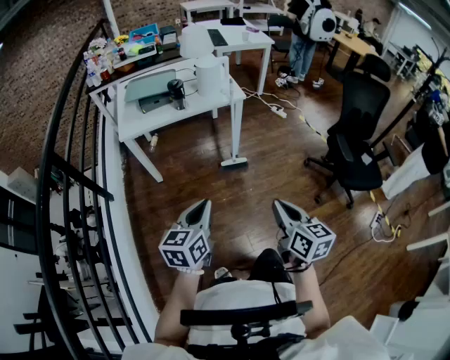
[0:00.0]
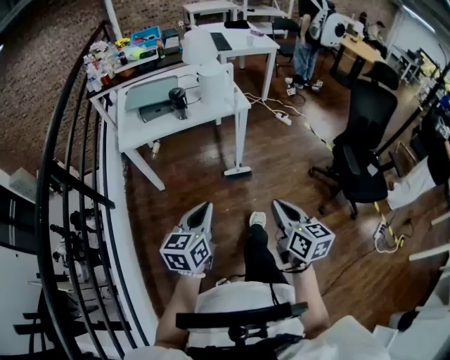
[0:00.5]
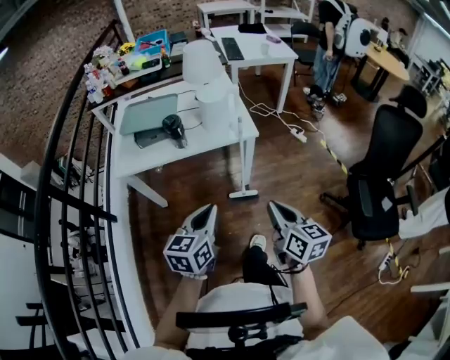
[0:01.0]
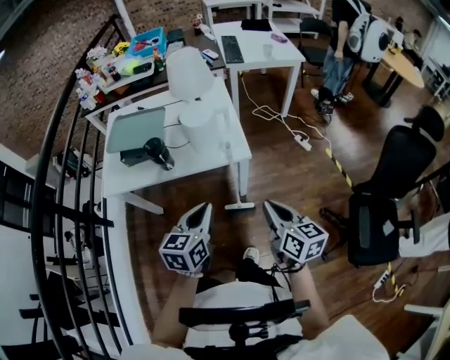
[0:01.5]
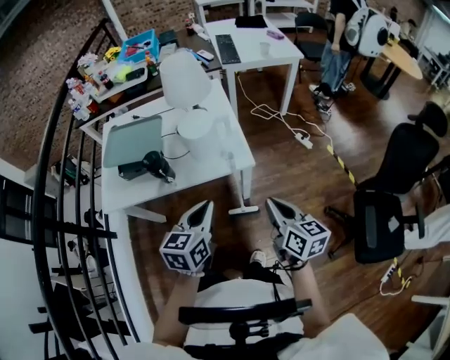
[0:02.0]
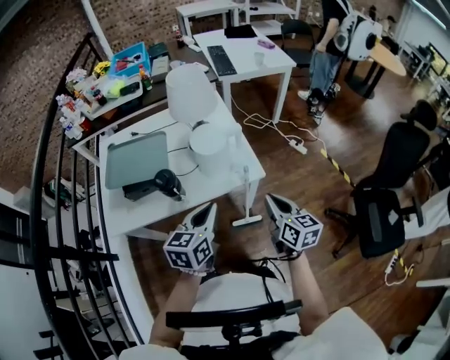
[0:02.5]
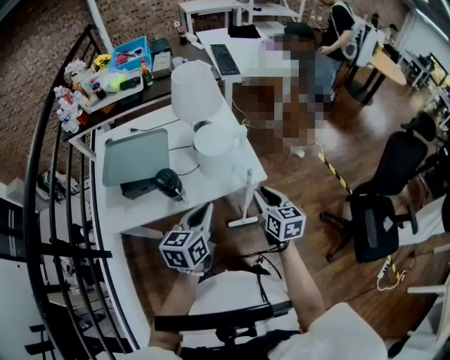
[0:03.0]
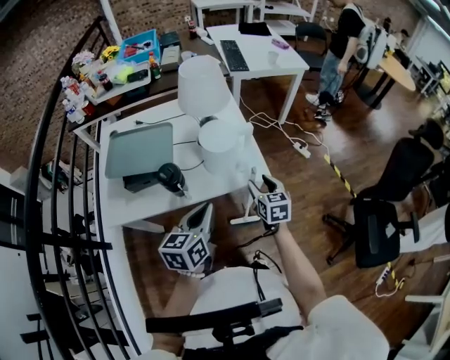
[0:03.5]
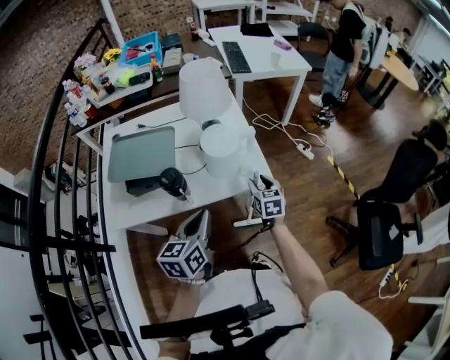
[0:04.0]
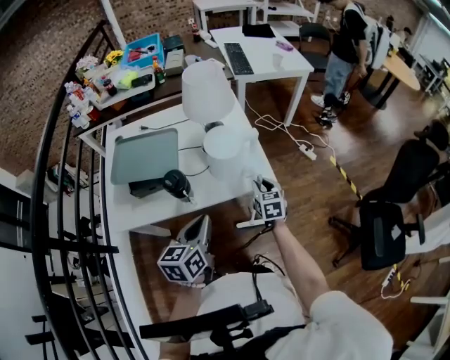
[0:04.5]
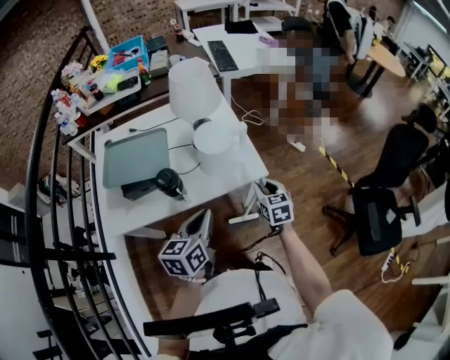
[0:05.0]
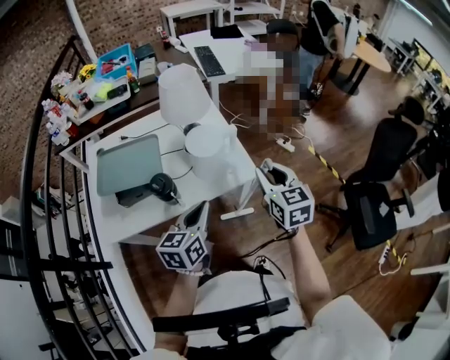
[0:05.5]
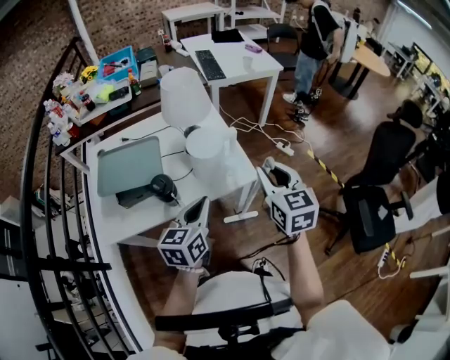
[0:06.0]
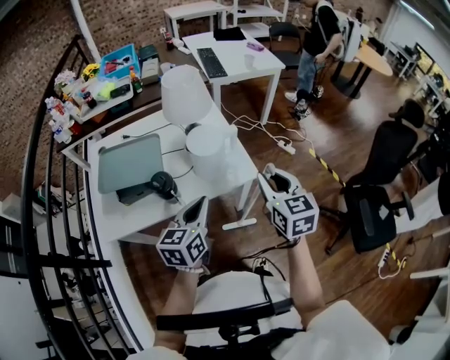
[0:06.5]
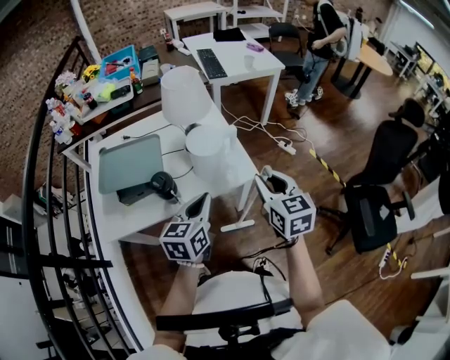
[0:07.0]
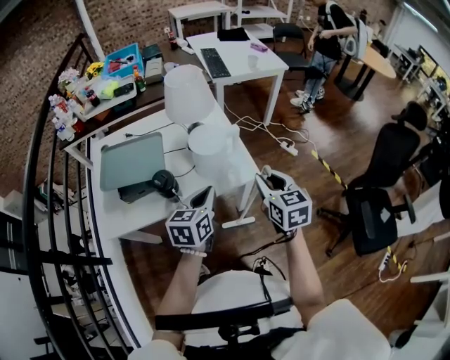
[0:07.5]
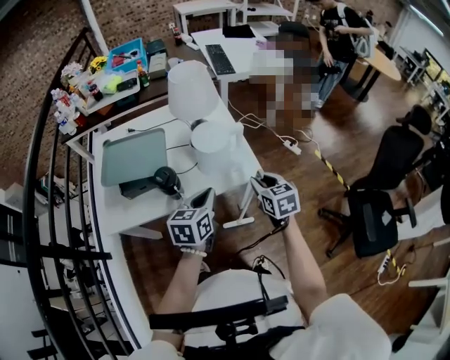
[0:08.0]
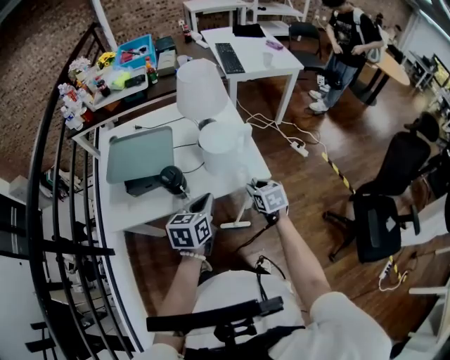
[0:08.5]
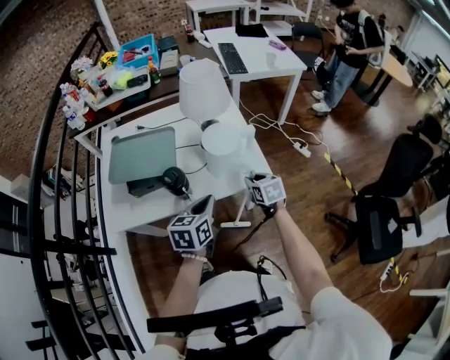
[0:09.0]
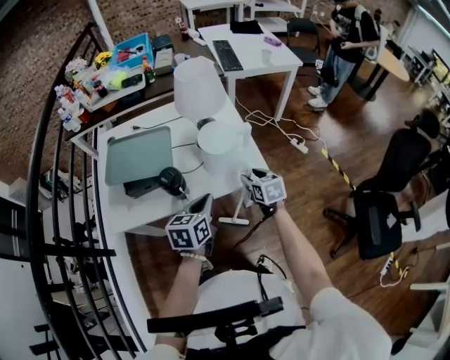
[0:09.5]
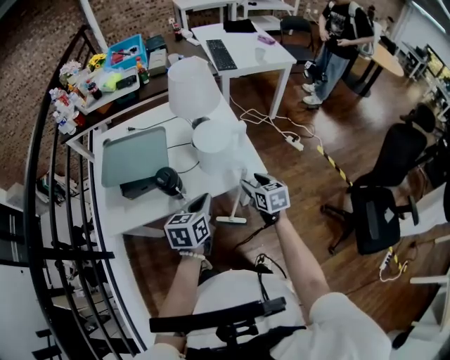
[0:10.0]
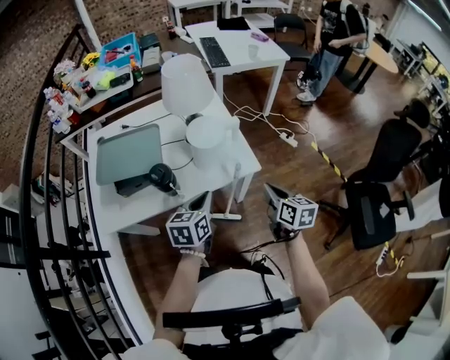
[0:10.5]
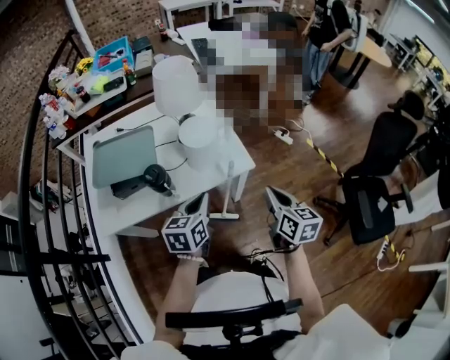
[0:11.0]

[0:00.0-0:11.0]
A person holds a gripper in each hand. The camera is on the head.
0:00.0 to 0:02.0: Both grippers are carried forward, some 50 cm.
0:02.0 to 0:03.5: The right gripper is displaced forward, downward and to the left by about 20 cm, rotates roughly 30 degrees, and opens its fingers; the left gripper is displaced to the left and forward by roughly 10 cm.
0:03.5 to 0:05.5: The right gripper heads upward, covering about 15 cm, and closes.
0:05.5 to 0:07.5: The grippers move only a little.
0:07.5 to 0:09.0: The right gripper is displaced downward and forward by approximately 20 cm, and swivels approximately 20 degrees. The left gripper ends up some 5 cm from where it was.
0:09.0 to 0:11.0: The right gripper goes some 20 cm backward, upward and to the right, changes its angle by some 30 degrees, and closes up.

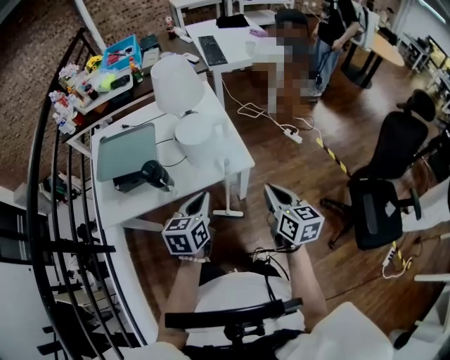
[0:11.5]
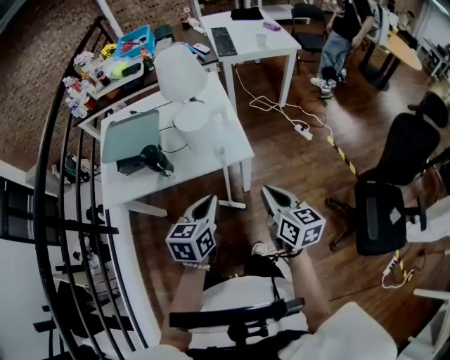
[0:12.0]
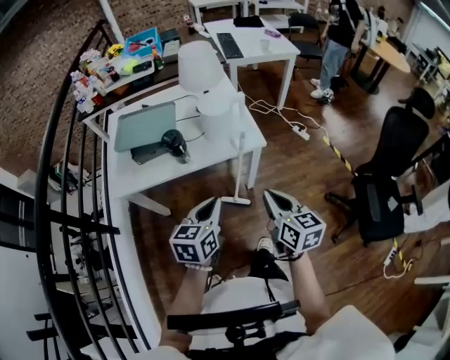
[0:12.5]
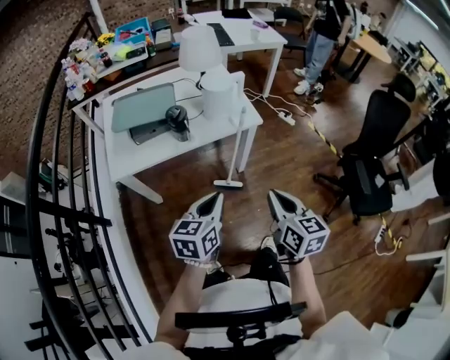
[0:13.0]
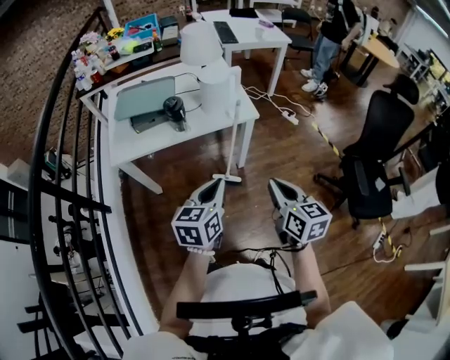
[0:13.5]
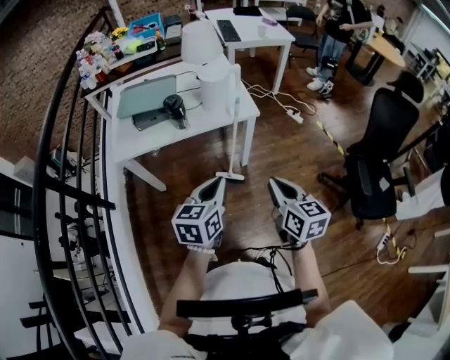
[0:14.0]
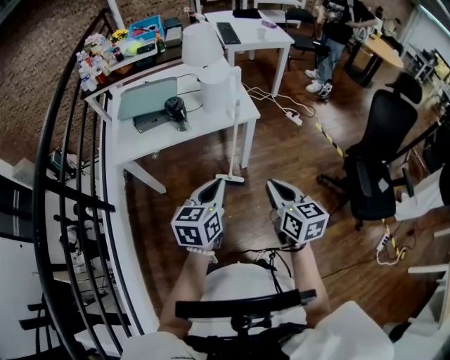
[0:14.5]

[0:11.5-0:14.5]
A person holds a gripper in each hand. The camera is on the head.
0:11.5 to 0:13.0: The left gripper heads backward, covering about 25 cm. The right gripper shifts roughly 25 cm backward and to the left.
0:13.0 to 0:14.5: The two grippers go some 5 cm to the right.

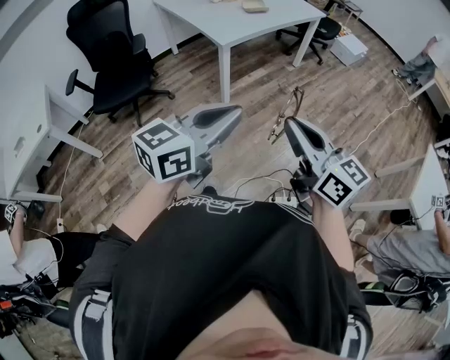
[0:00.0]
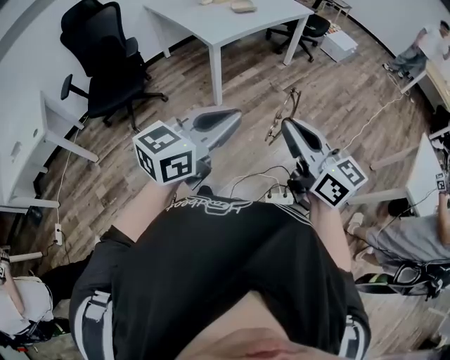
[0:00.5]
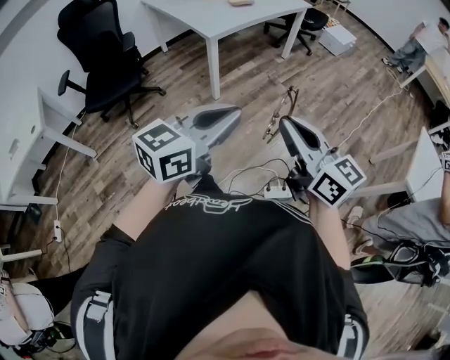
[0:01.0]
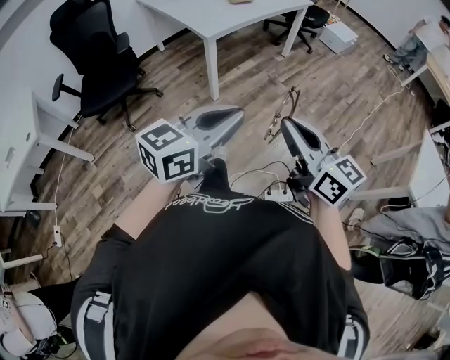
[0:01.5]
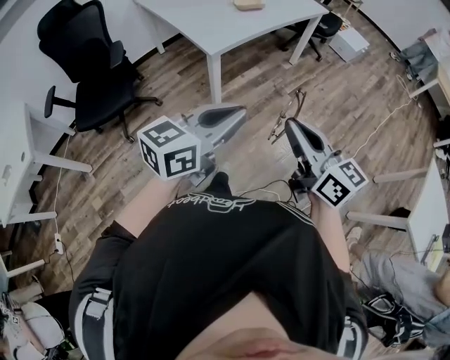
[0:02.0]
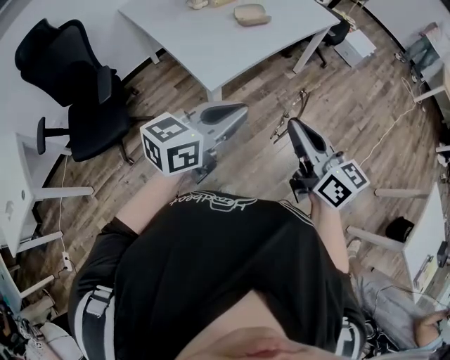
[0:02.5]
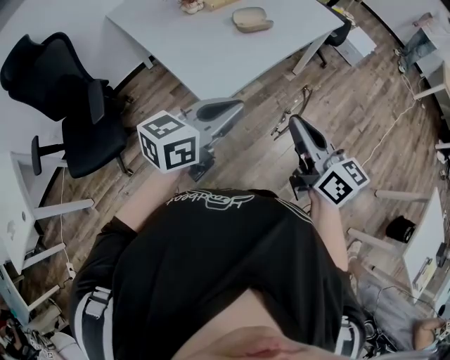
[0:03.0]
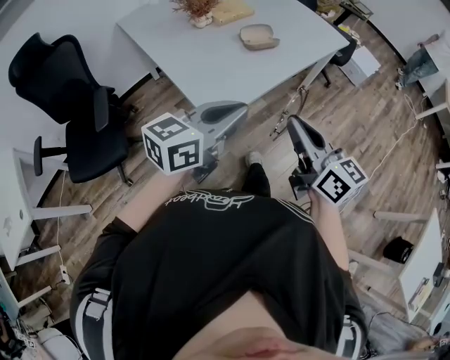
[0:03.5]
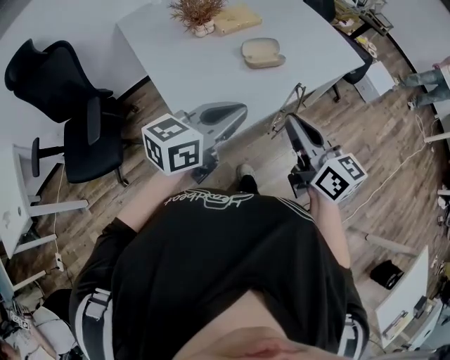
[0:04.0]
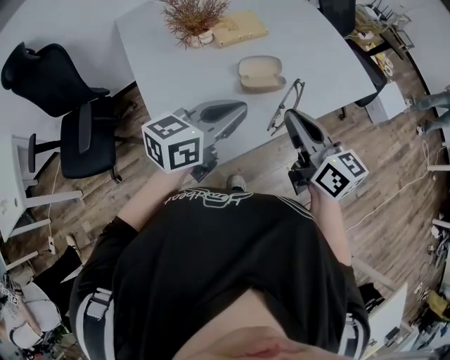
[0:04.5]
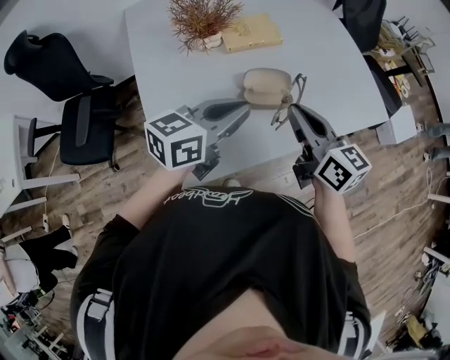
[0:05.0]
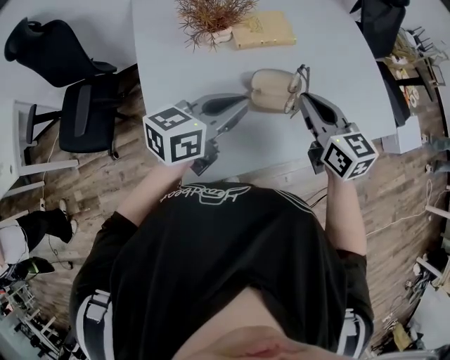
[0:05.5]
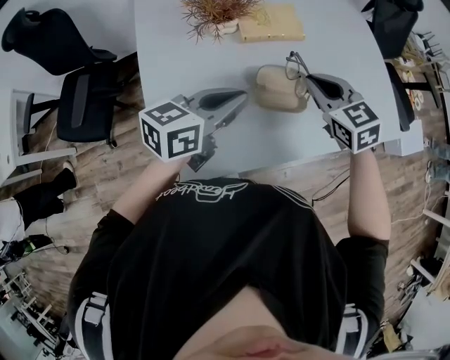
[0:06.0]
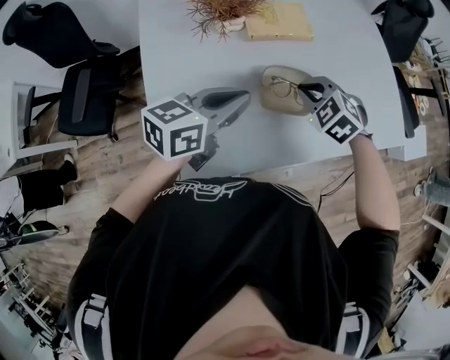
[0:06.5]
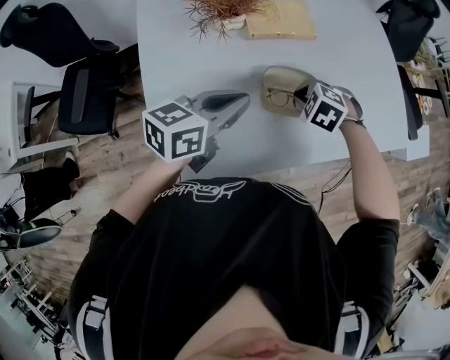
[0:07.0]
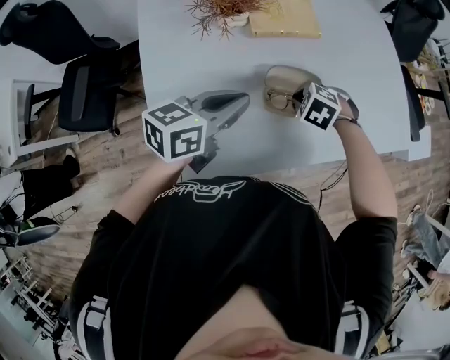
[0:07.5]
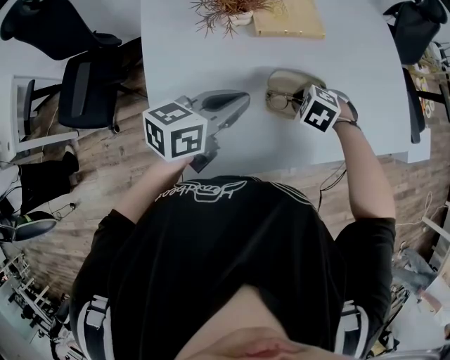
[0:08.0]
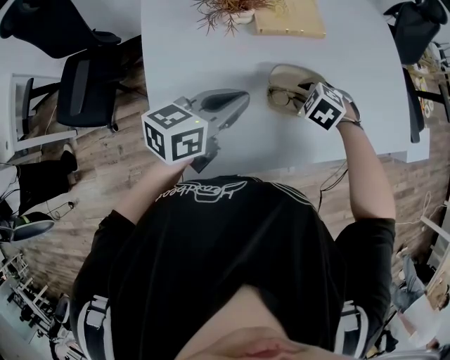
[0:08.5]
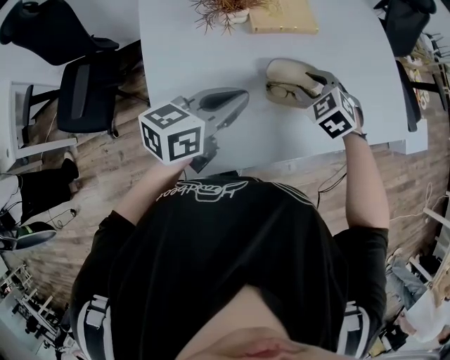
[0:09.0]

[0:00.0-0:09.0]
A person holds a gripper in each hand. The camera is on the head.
0:00.0 to 0:02.0: The grippers both shift forward by some 20 cm.
0:02.0 to 0:04.5: The pair of grippers is taken forward, about 70 cm.
0:04.5 to 0:07.0: The right gripper shifts approximately 30 cm downward and forward, and tips its fingers downward by approximately 70 degrees. The left gripper moves forward and downward, roughly 15 cm.
0:07.0 to 0:09.0: The right gripper swivels roughly 20 degrees, and opens.

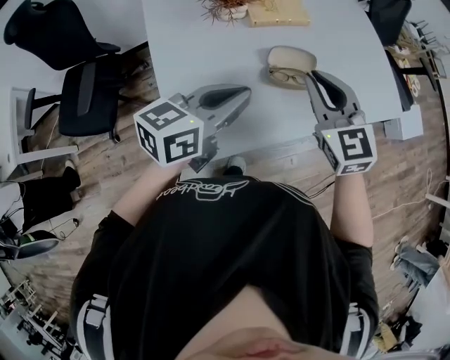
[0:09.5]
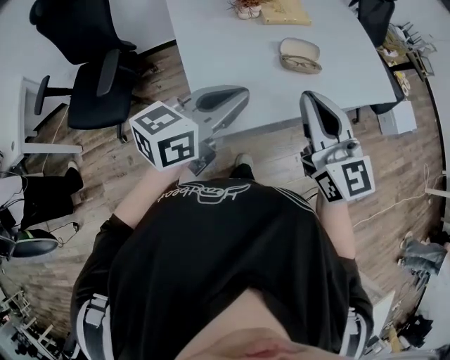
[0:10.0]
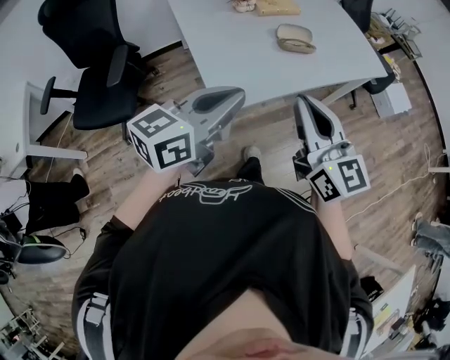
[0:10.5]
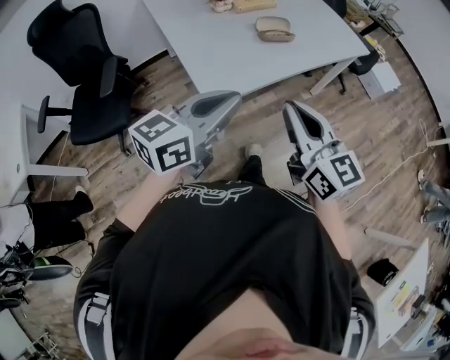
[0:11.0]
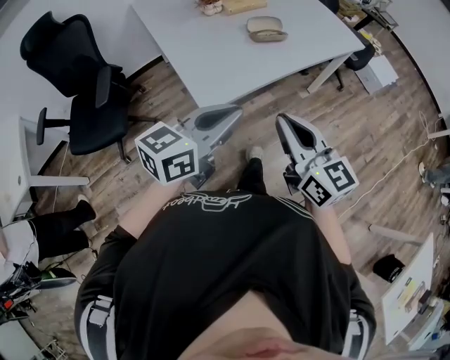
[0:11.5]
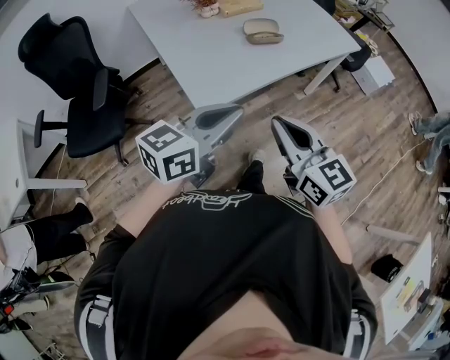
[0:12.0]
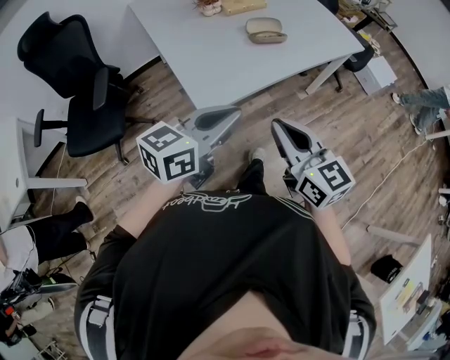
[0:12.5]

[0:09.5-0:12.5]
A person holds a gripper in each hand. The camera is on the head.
0:09.5 to 0:11.0: The two grippers go roughly 35 cm backward. The right gripper changes its angle by approximately 30 degrees.
0:11.0 to 0:12.5: The grippers make only small movements.
